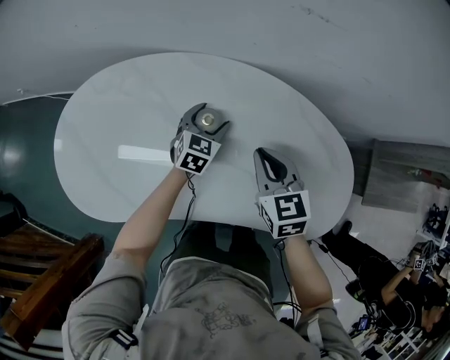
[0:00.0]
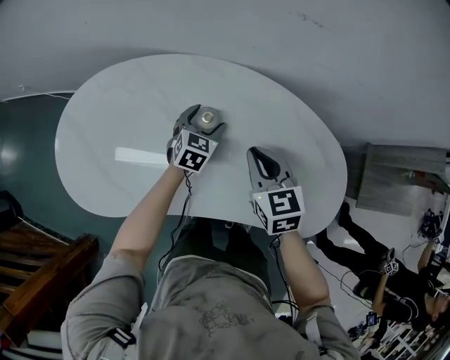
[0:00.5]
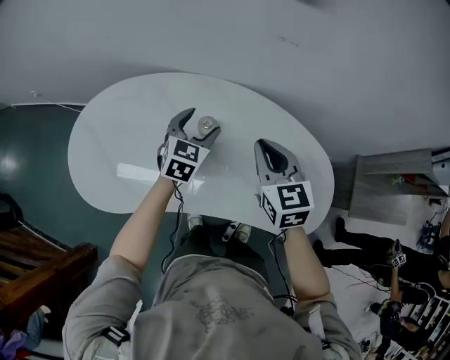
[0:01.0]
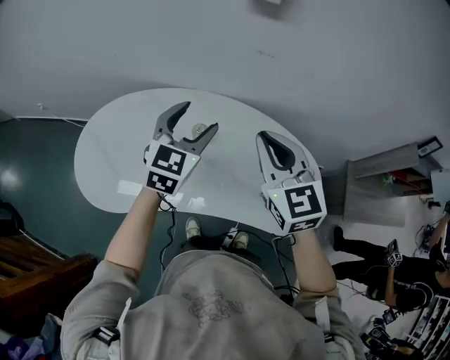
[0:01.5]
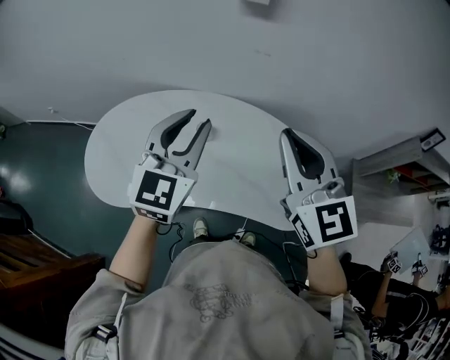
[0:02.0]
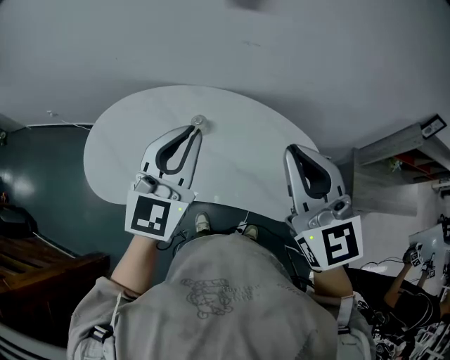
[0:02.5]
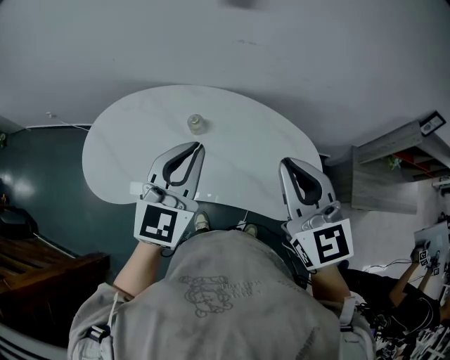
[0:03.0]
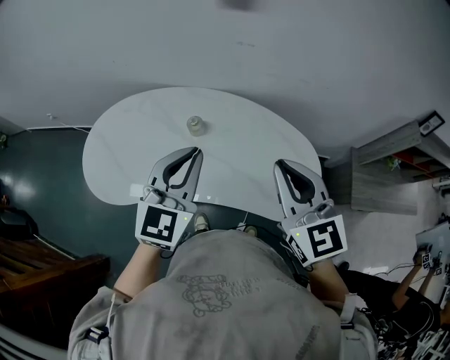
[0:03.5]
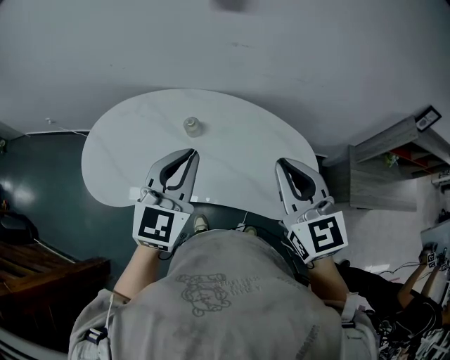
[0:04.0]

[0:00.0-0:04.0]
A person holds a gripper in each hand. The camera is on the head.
0:00.0 to 0:02.0: The right gripper shifts some 35 cm upward, and tilts its fingers approximately 30 degrees upward. Meanwhile the left gripper is displaced upward and backward by approximately 50 cm, points its fingers some 30 degrees further upward, and closes.
0:02.0 to 0:04.0: The right gripper is displaced backward, downward and to the right by approximately 10 cm. Meanwhile the left gripper shifts approximately 10 cm backward.

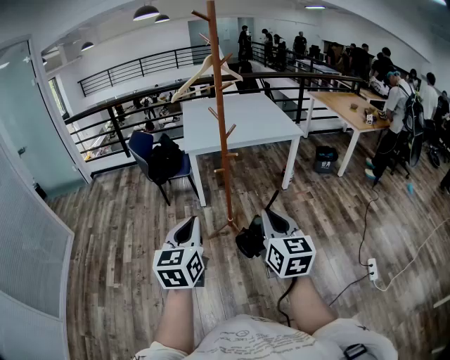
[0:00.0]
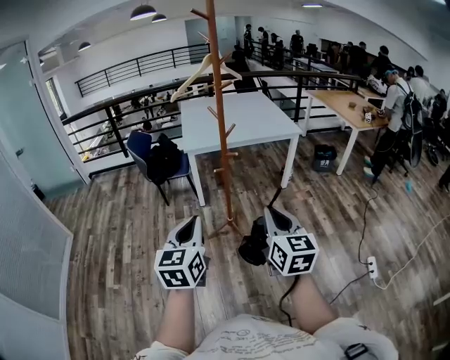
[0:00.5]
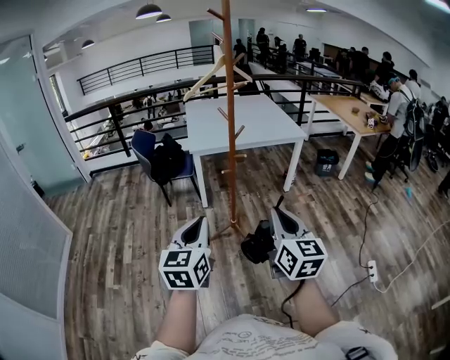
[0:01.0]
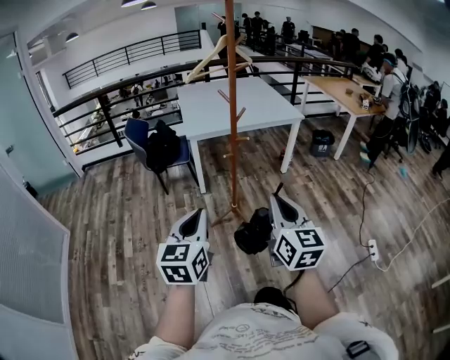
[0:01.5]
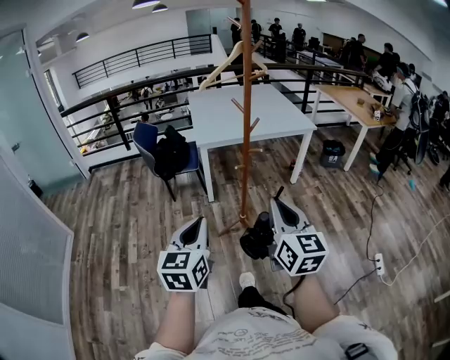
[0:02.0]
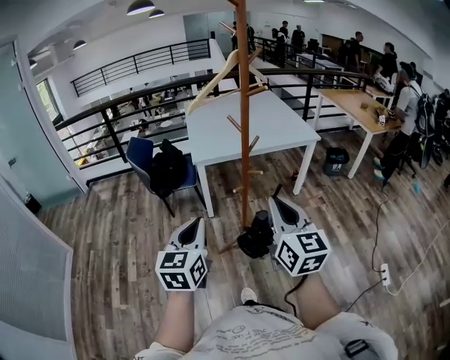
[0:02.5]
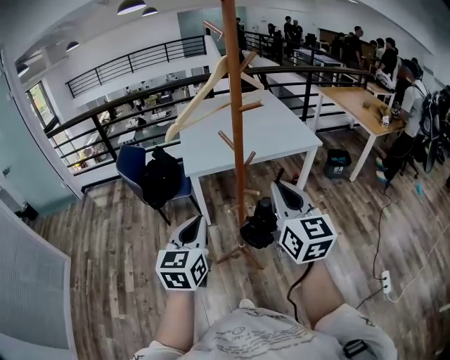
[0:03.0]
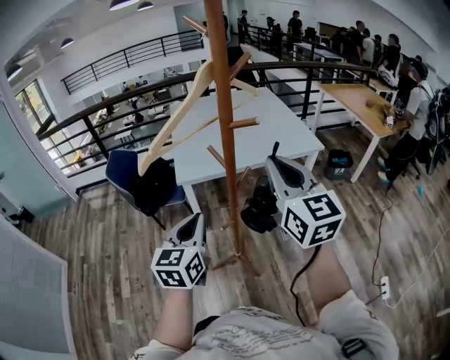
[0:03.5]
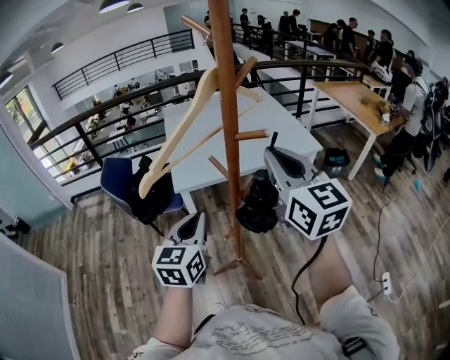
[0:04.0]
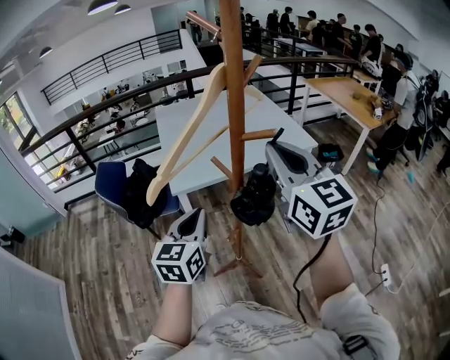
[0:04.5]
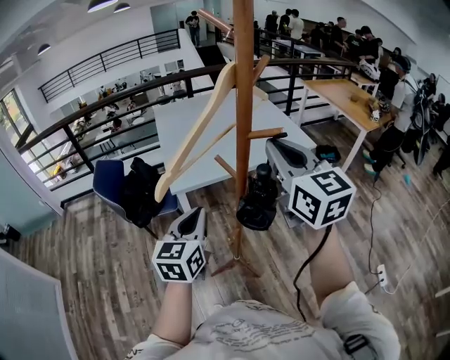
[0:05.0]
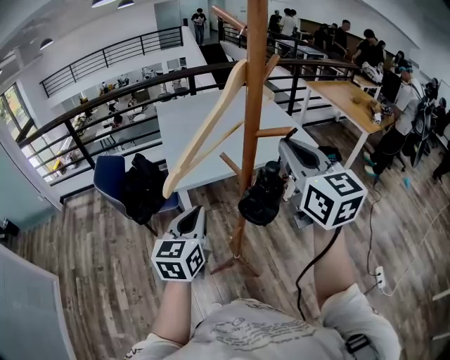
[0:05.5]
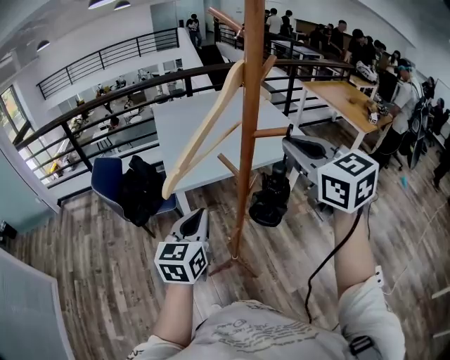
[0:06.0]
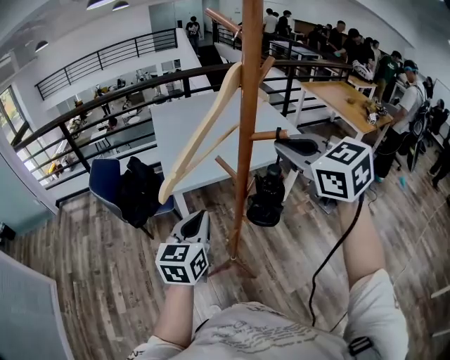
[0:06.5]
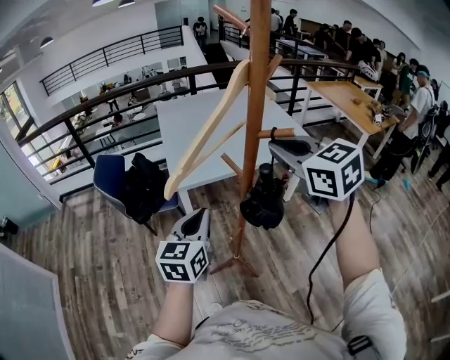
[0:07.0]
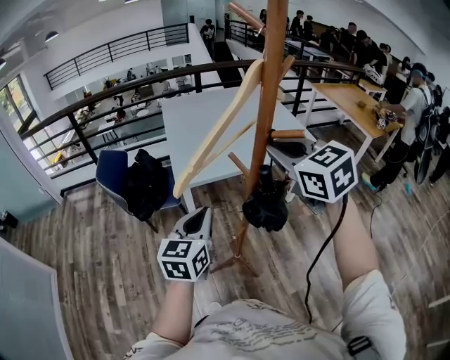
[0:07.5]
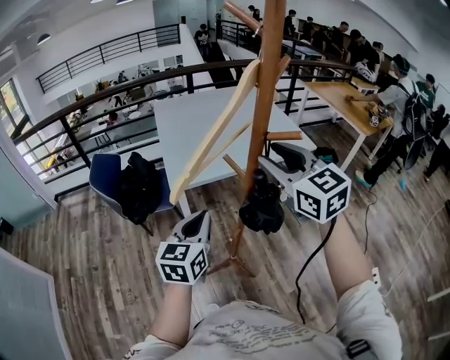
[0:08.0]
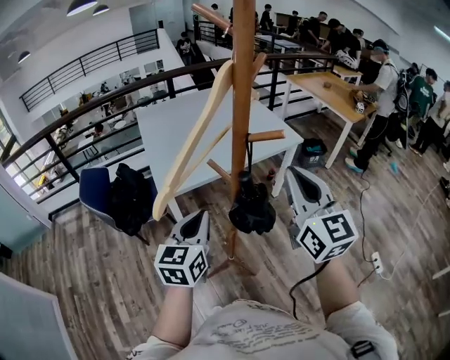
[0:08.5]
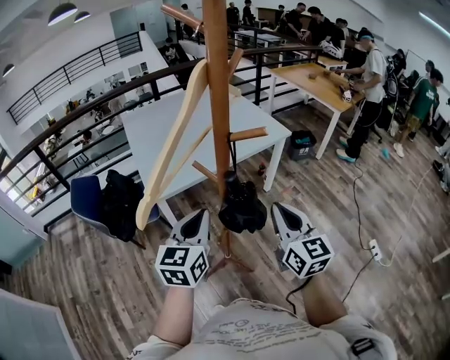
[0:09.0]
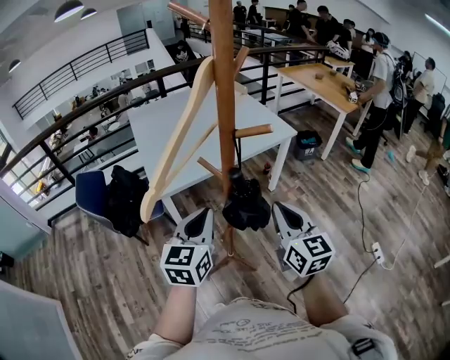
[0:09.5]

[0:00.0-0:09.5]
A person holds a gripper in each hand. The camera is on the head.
0:00.0 to 0:02.0: The grippers both shift to the left and forward by some 15 cm.
0:02.0 to 0:04.0: The pair of grippers is taken forward, some 50 cm.
0:04.0 to 0:05.5: The grippers make only small movements.
0:05.5 to 0:07.5: The right gripper goes roughly 5 cm to the left, and turns by approximately 30 degrees.
0:07.5 to 0:09.5: The right gripper moves downward, to the right and backward, about 20 cm, changes its angle by approximately 40 degrees, and opens and closes again, while the left gripper goes approximately 5 cm to the right.

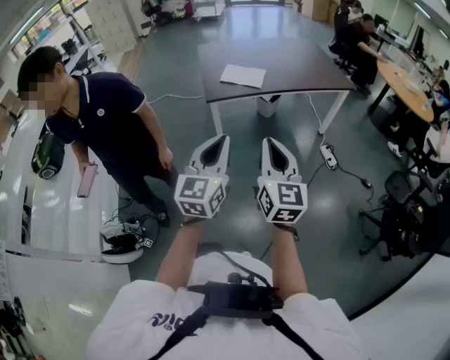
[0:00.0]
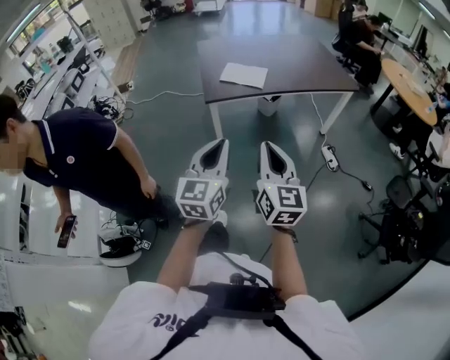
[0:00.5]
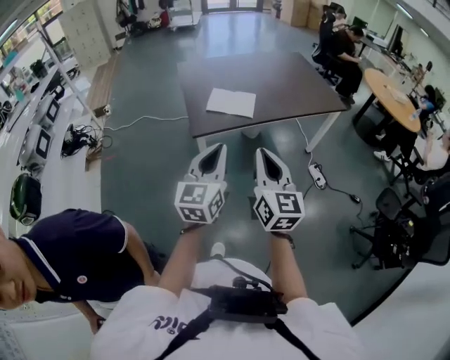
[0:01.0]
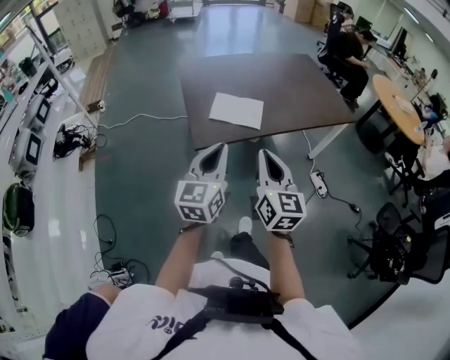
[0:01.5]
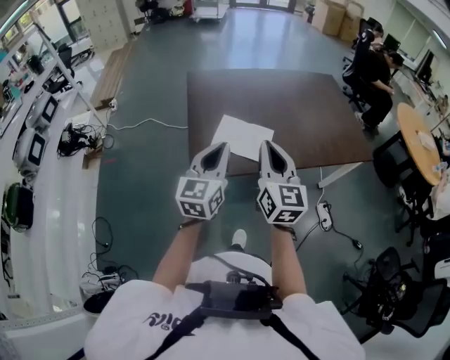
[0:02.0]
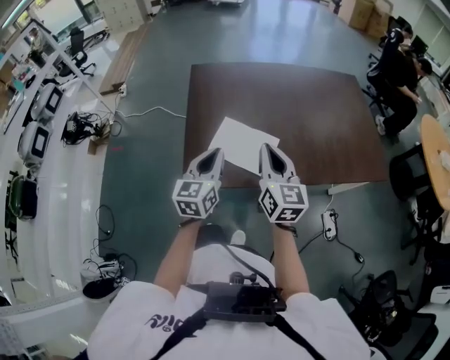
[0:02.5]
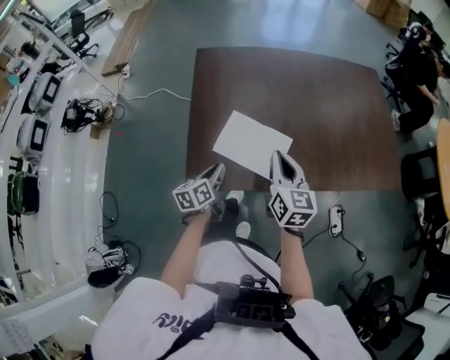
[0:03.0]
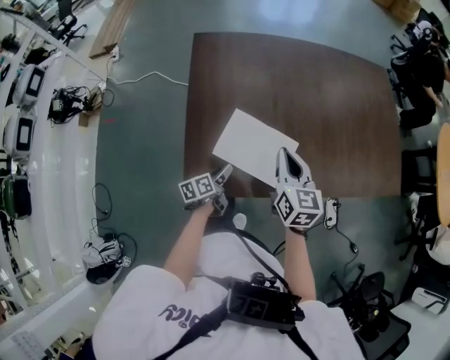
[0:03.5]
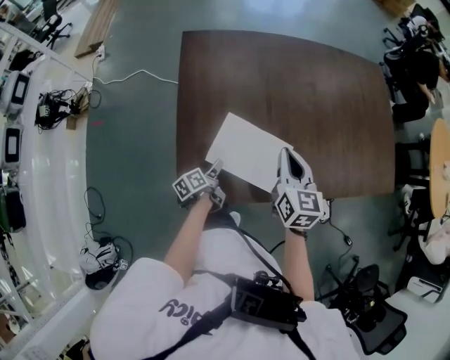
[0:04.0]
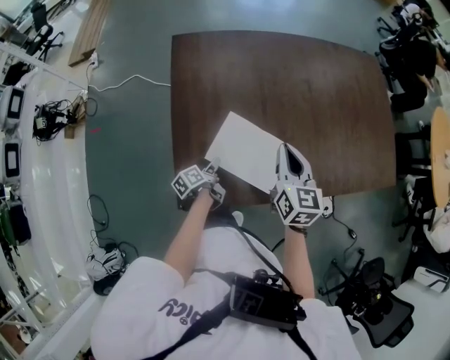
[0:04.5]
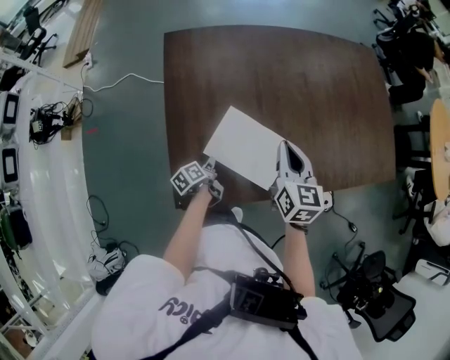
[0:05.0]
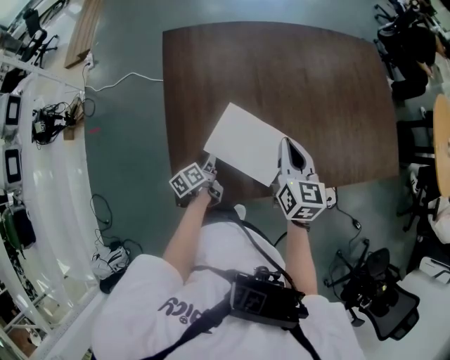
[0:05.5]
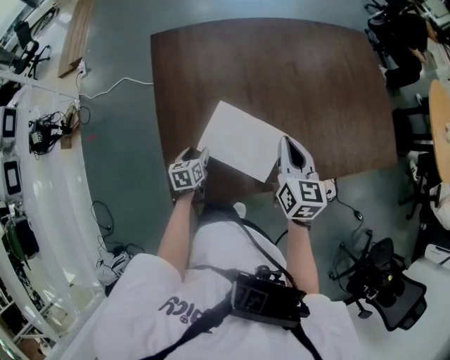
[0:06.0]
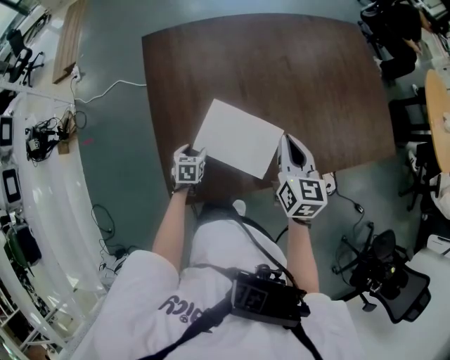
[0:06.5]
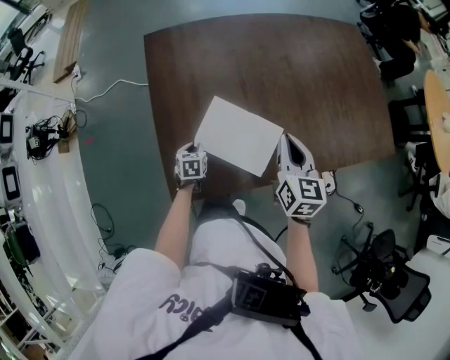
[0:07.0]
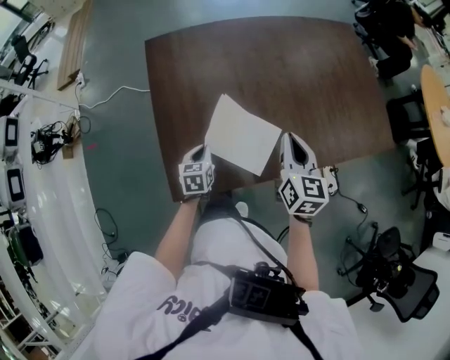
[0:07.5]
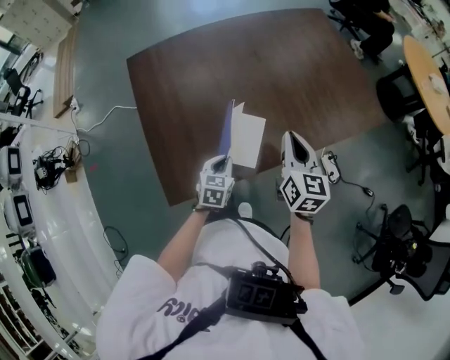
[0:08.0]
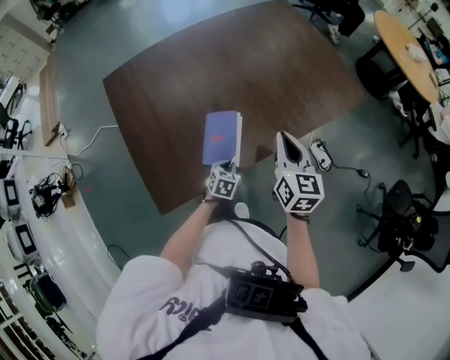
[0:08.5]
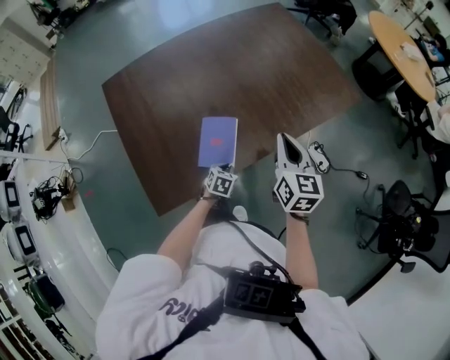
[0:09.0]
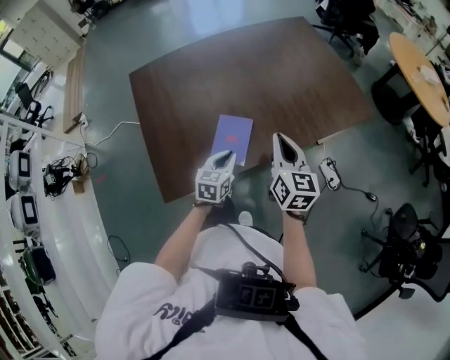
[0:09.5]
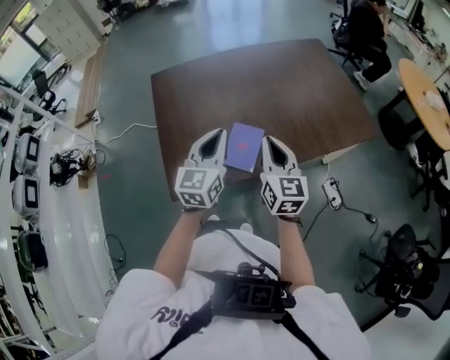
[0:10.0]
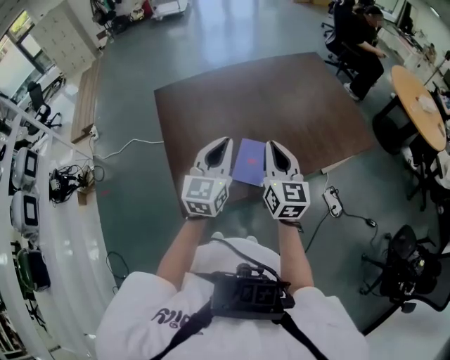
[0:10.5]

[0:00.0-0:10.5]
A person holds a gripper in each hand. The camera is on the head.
0:00.0 to 0:02.0: The pair of grippers is taken forward, approximately 60 cm.
0:02.0 to 0:04.0: The left gripper shifts roughly 50 cm downward and forward, twists approximately 70 degrees counterclockwise, seen from behind, and opens; the right gripper is displaced forward and downward by approximately 40 cm, and swivels approximately 30 degrees.
0:04.0 to 0:06.5: The left gripper shifts by some 5 cm, rotates around the line of its fingers by approximately 60 degrees, clockwise from behind, and closes, then opens again. Meanwhile the right gripper moves to the right, about 5 cm.
0:06.5 to 0:08.5: The right gripper changes place by some 20 cm. The left gripper reaches some 10 cm upward, then returns, changes its angle by about 30 degrees, and closes.
0:08.5 to 0:10.5: The left gripper goes roughly 40 cm upward, and tilts its fingers approximately 50 degrees upward, while the right gripper heads to the left, upward and backward, covering roughly 15 cm.

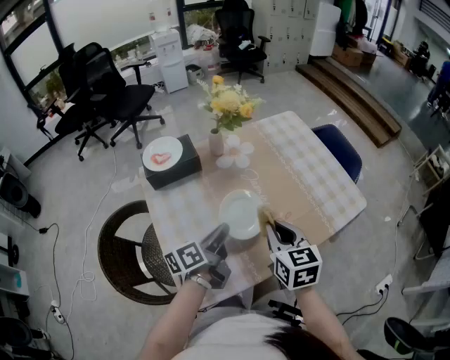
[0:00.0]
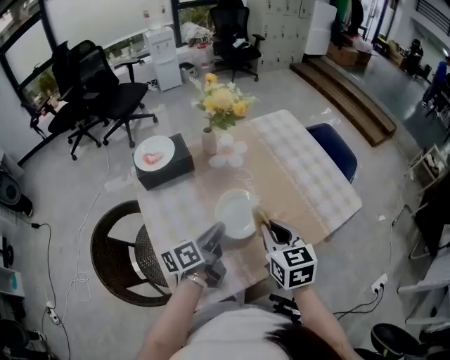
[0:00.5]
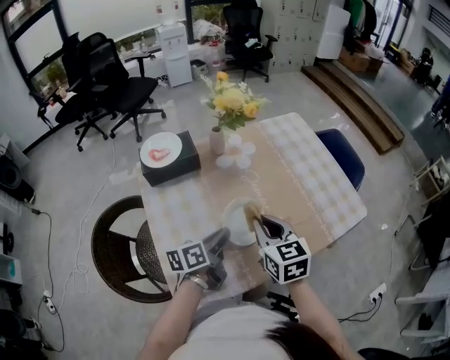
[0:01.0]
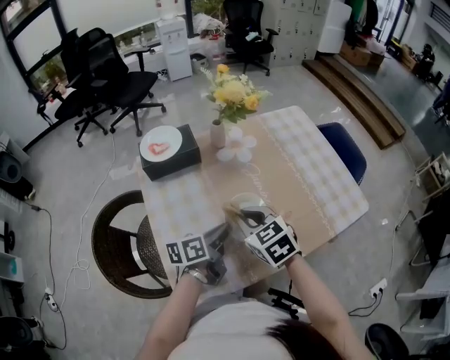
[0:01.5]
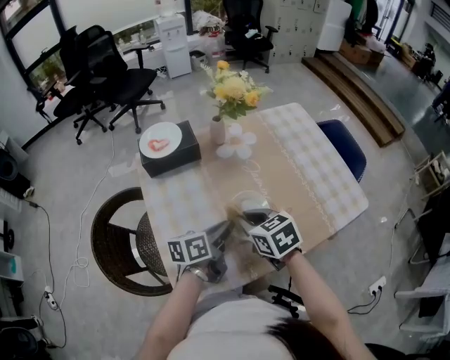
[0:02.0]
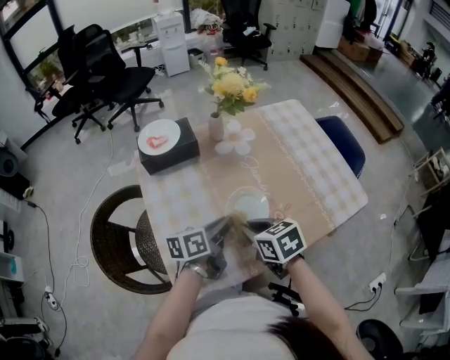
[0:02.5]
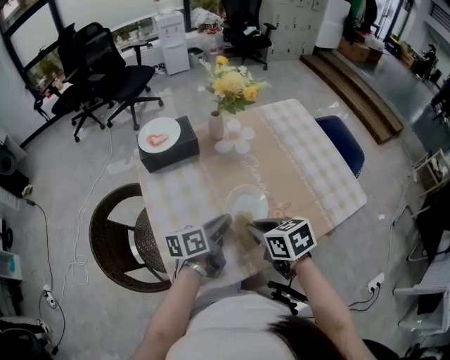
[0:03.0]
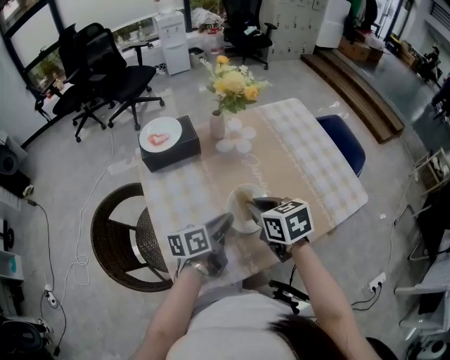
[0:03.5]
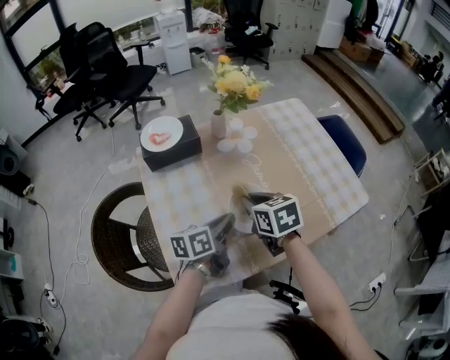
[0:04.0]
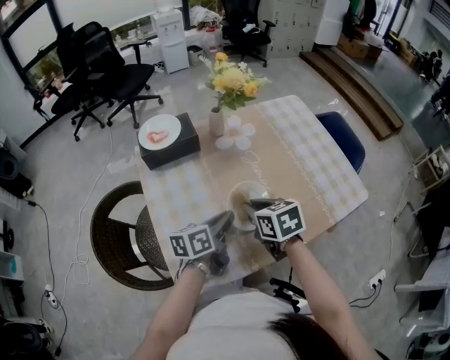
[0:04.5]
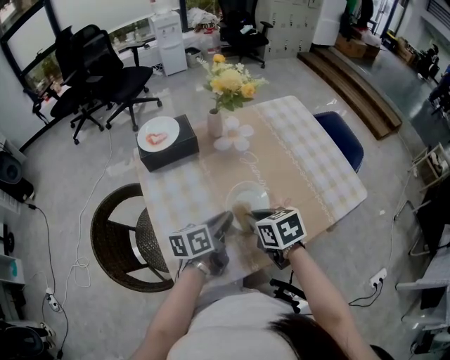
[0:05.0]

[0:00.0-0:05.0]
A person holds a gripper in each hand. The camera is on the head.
0:00.0 to 0:02.5: The right gripper is displaced downward by about 10 cm, and turns by roughly 30 degrees.